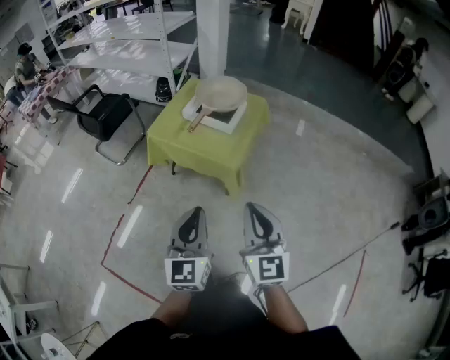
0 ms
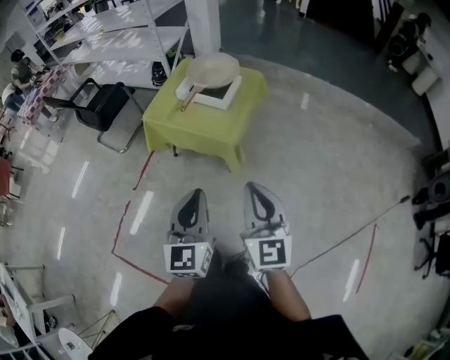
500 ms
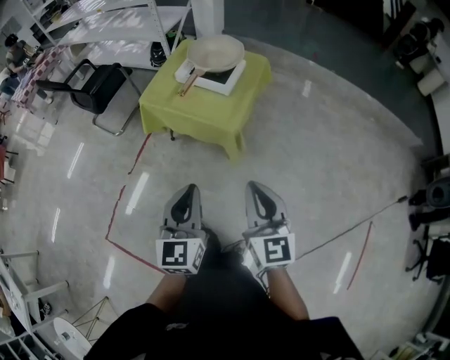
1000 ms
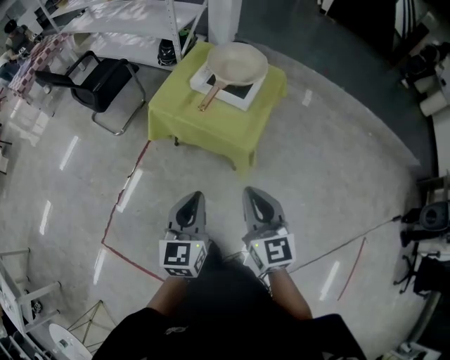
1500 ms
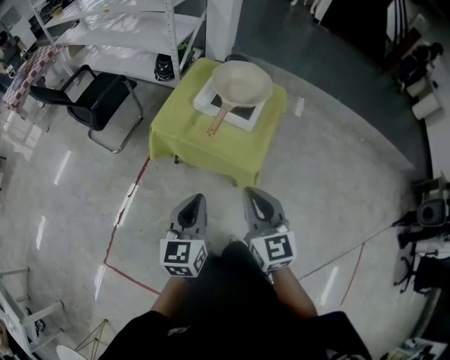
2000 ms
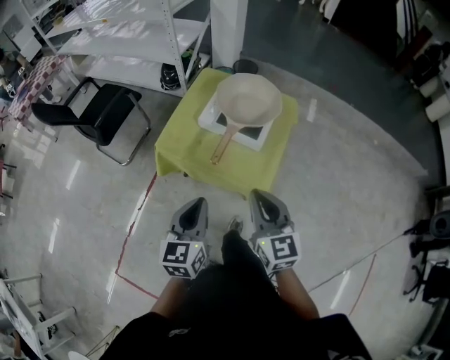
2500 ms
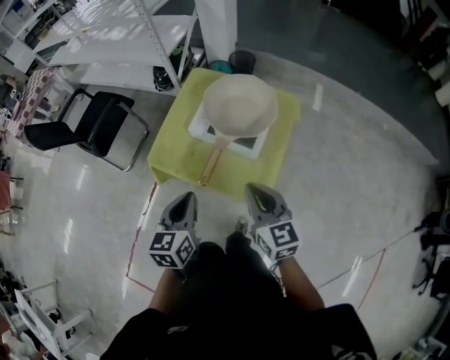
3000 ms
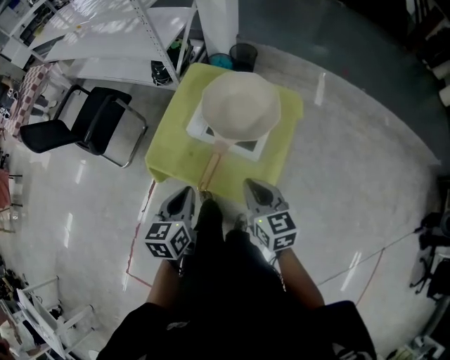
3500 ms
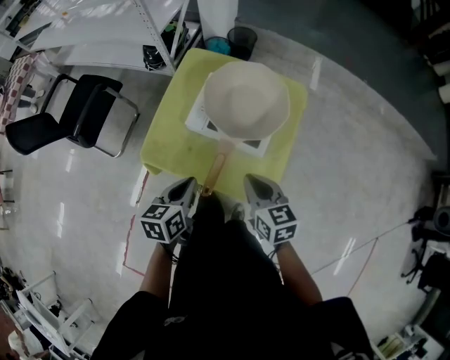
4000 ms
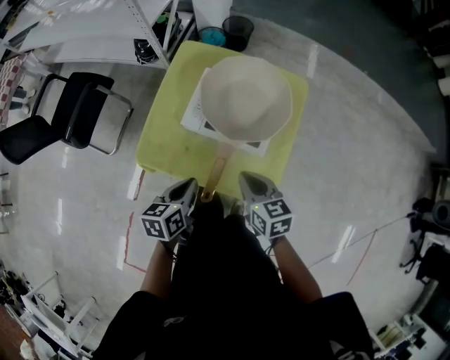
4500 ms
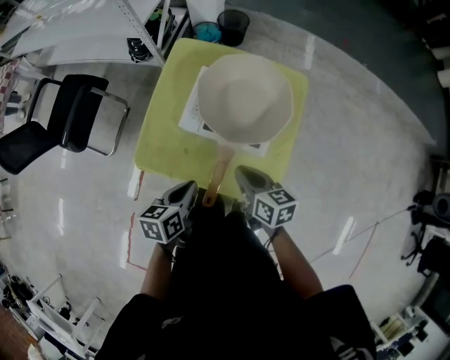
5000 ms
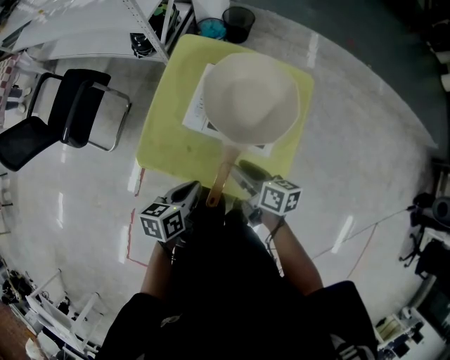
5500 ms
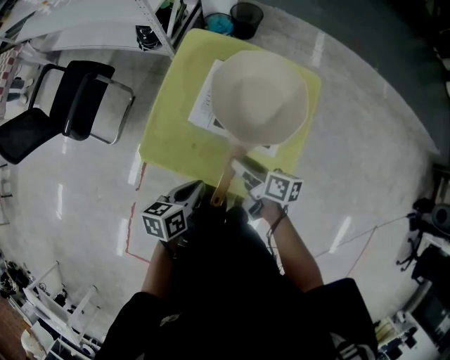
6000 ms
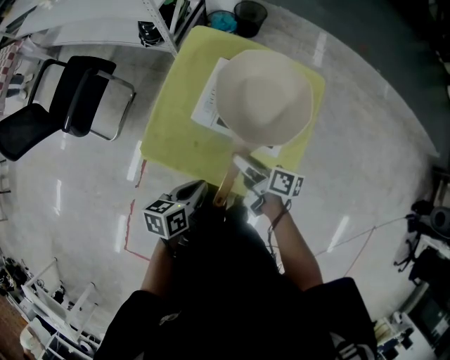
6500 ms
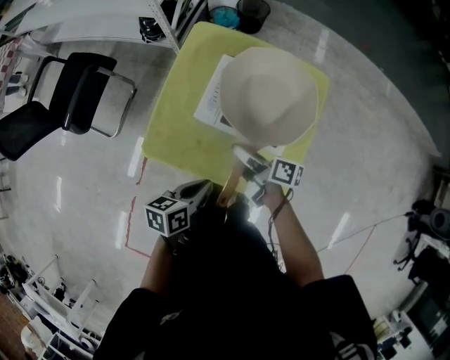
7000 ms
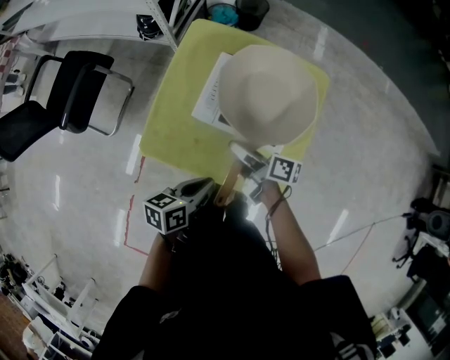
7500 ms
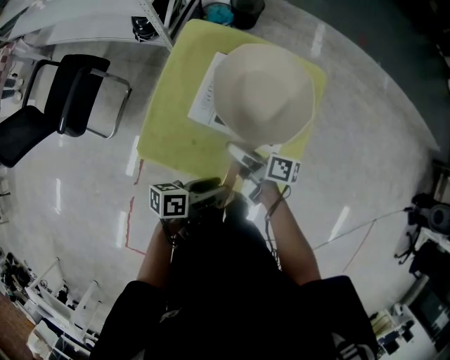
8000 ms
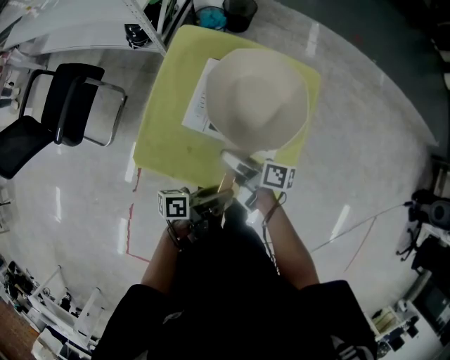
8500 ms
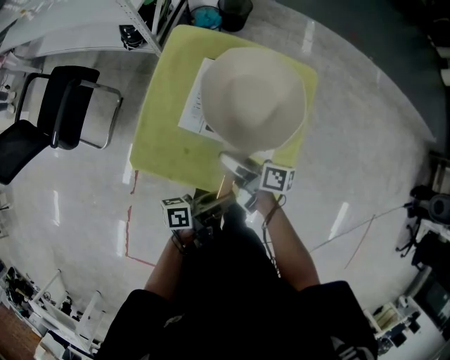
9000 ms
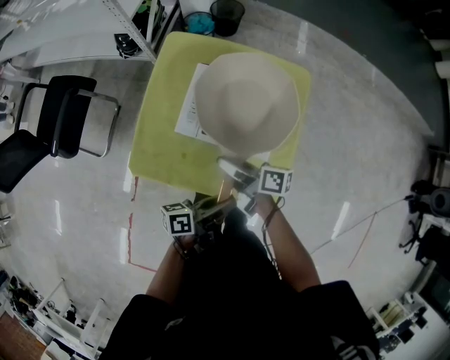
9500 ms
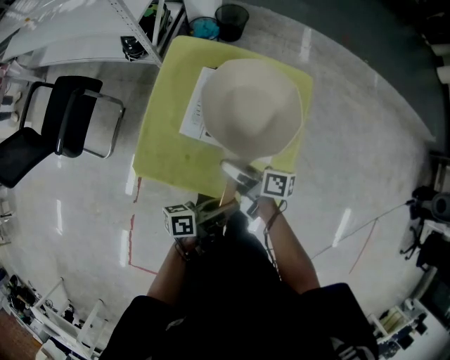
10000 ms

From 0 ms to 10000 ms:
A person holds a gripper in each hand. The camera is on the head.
From 0 ms to 2000 ms: The right gripper goes about 20 cm forward and to the left, while the left gripper is displaced forward, to the left and downward by roughly 20 cm.
From 2000 ms to 4000 ms: Both grippers travel together forward and downward, approximately 35 cm. The left gripper swivels about 30 degrees; the right gripper rotates roughly 30 degrees.
From 4000 ms to 6000 ms: The right gripper is displaced downward, forward and to the left by roughly 15 cm, twists about 40 degrees clockwise, seen from behind, and opens up. Meanwhile the left gripper shifts roughly 5 cm downward.
From 6000 ms to 8000 ms: The left gripper goes about 5 cm to the right, changes its angle by some 30 degrees, and opens its fingers.
From 8000 ms to 10000 ms: The left gripper closes.

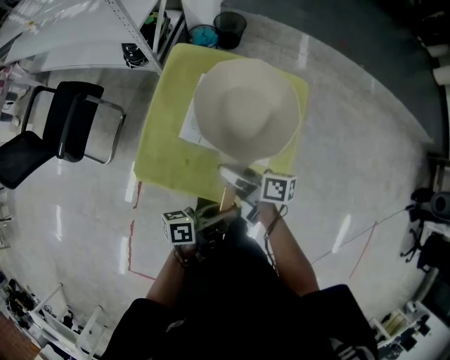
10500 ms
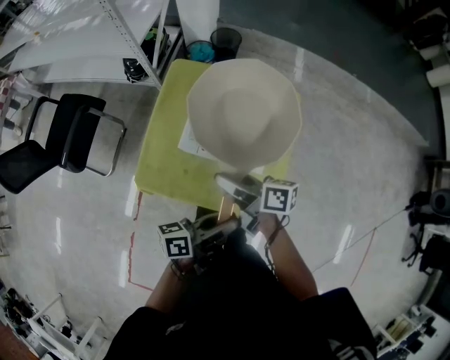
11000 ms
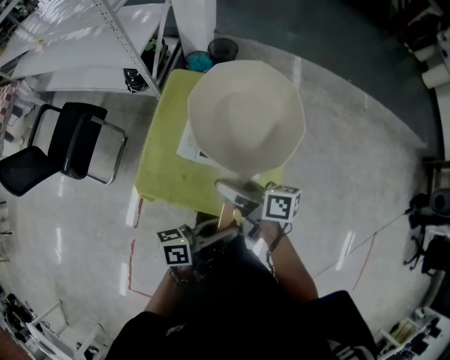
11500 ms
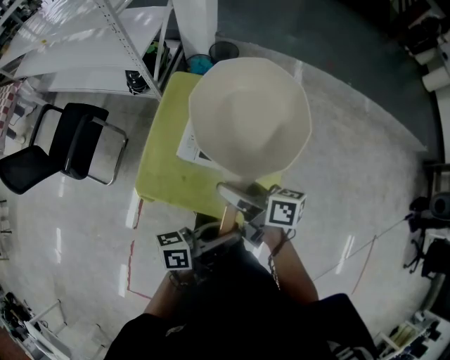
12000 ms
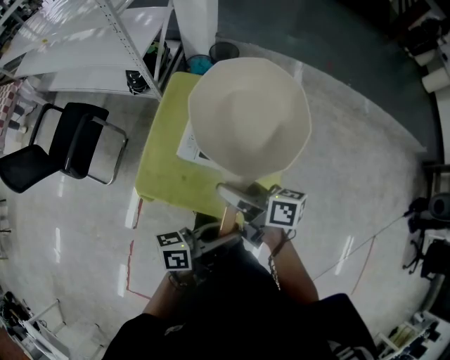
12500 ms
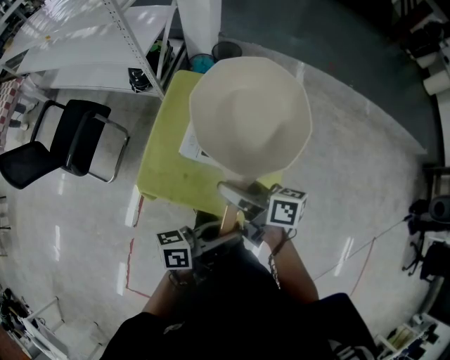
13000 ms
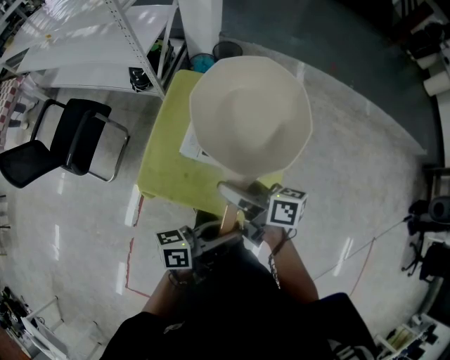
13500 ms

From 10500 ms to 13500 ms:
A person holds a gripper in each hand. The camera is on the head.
From 10500 ms to 12000 ms: The two grippers go roughly 10 cm upward.
From 12000 ms to 13500 ms: The grippers move only a little.

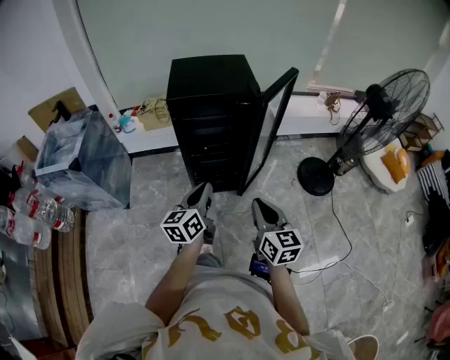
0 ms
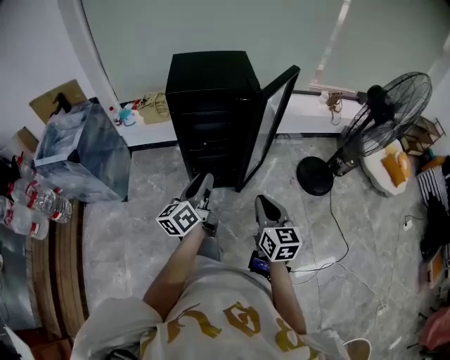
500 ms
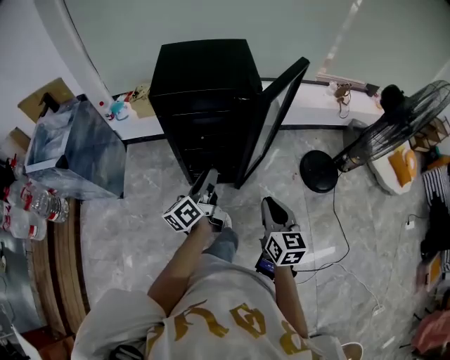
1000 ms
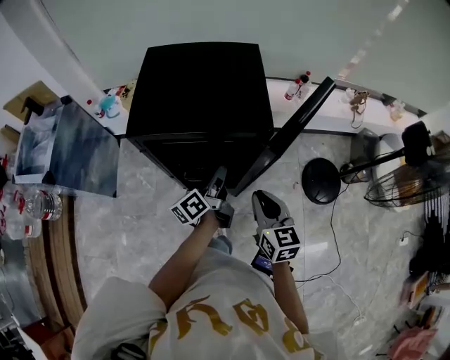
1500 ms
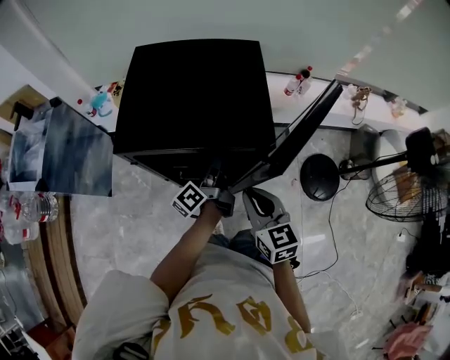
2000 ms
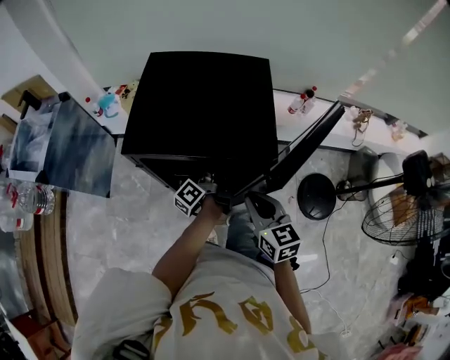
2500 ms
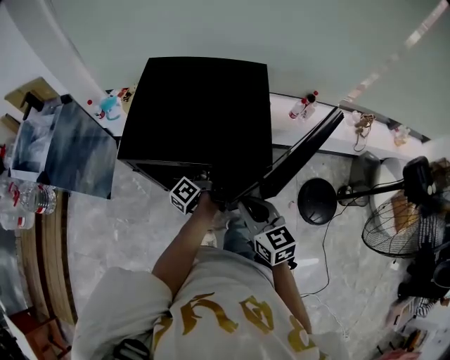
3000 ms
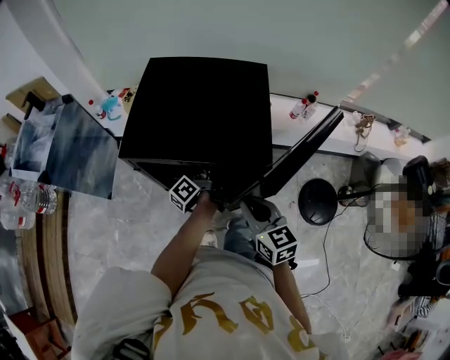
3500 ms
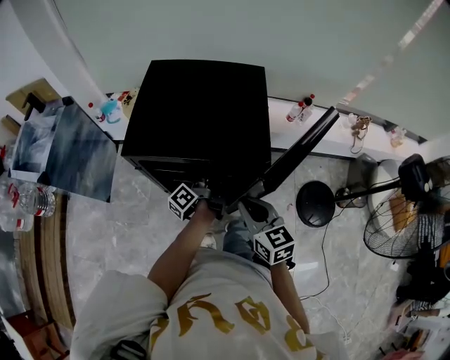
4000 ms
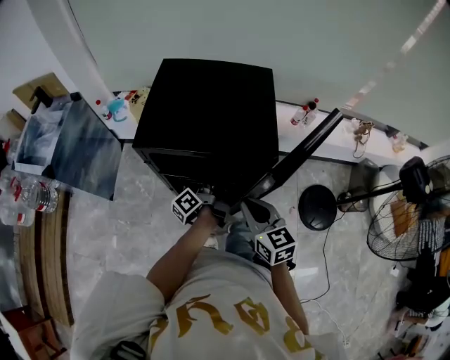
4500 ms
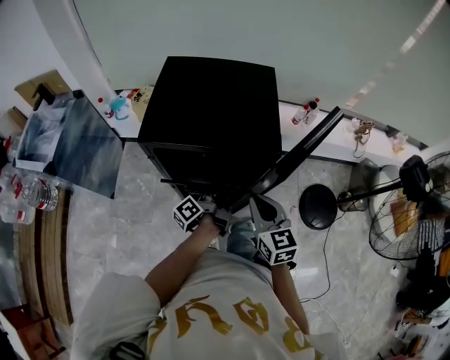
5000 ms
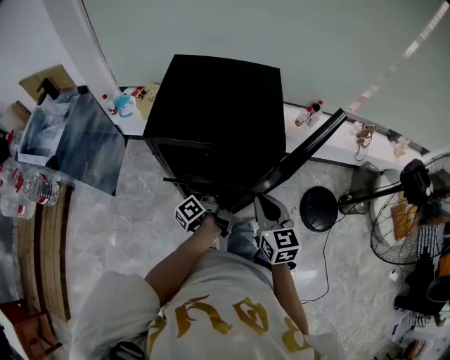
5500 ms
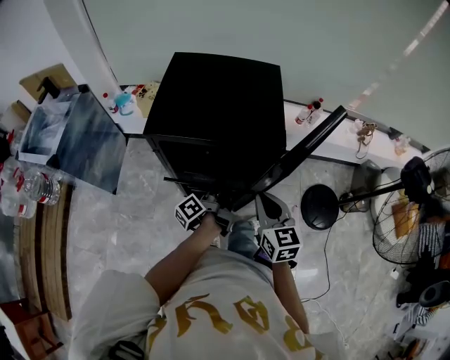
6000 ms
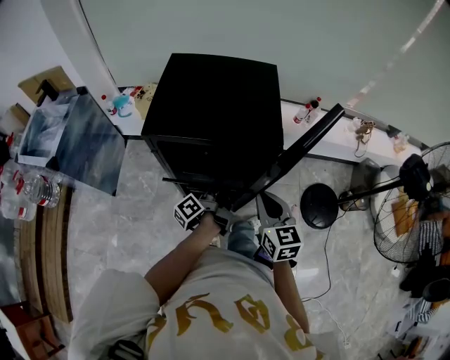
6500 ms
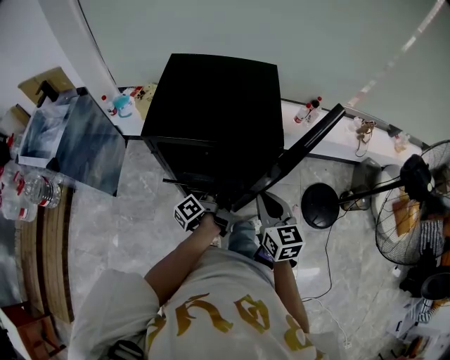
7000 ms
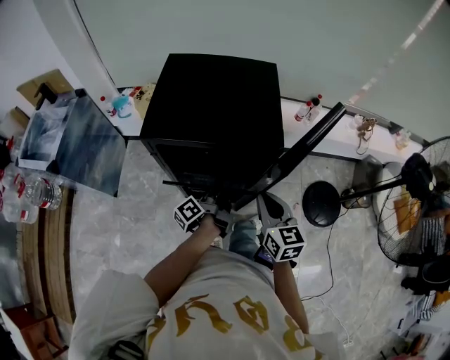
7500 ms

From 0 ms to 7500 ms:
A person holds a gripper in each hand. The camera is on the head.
From 0 ms to 2000 ms: The right gripper moves roughly 30 cm, and turns by about 20 degrees.

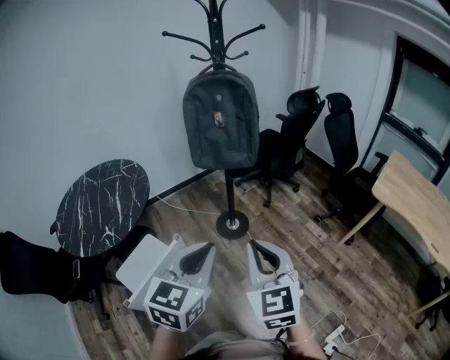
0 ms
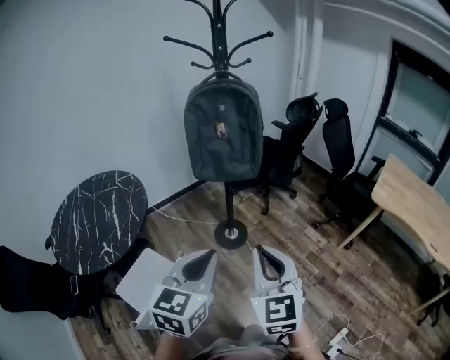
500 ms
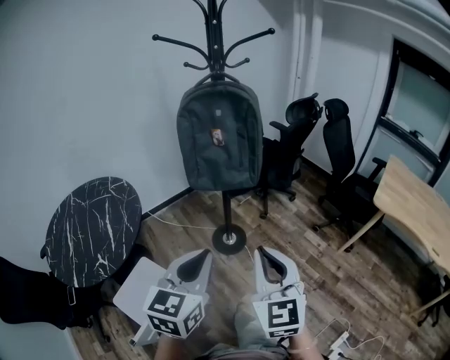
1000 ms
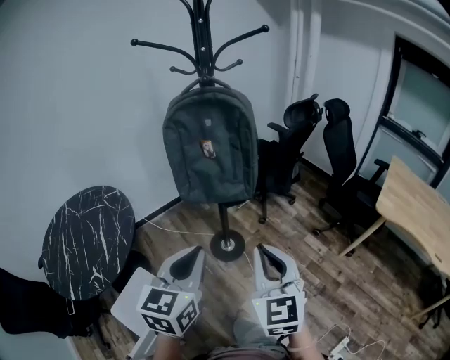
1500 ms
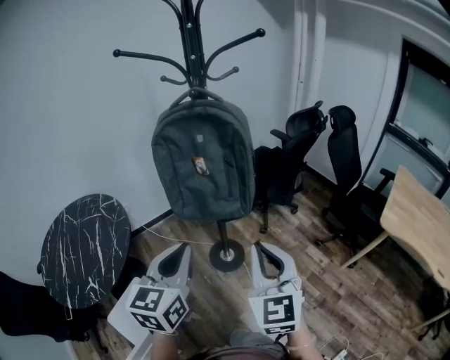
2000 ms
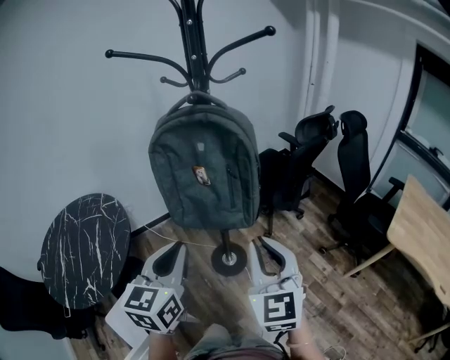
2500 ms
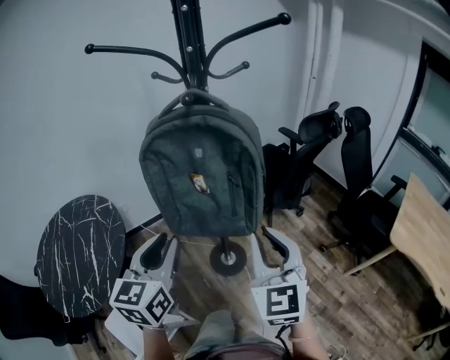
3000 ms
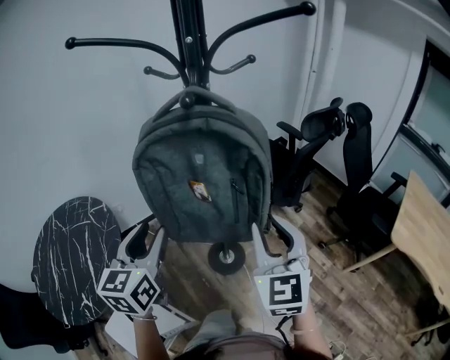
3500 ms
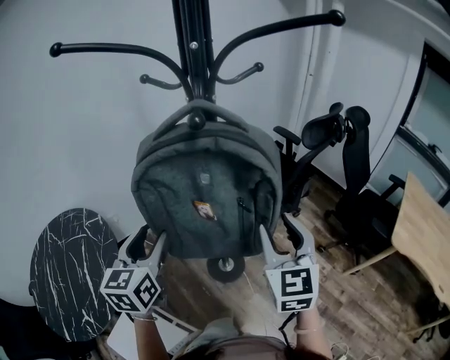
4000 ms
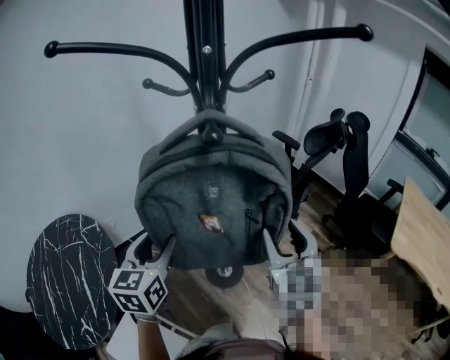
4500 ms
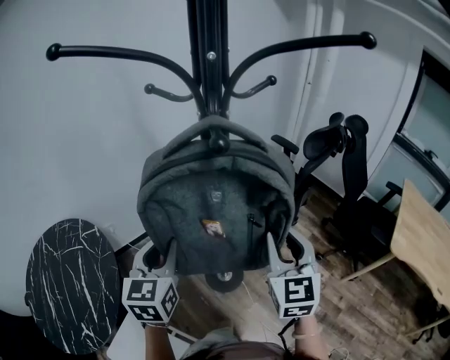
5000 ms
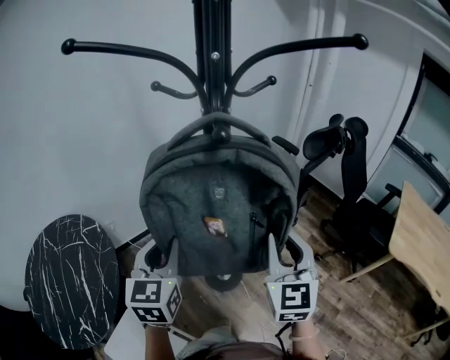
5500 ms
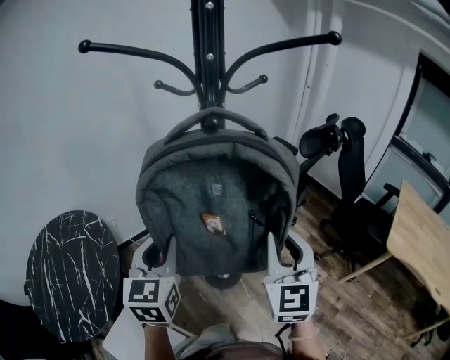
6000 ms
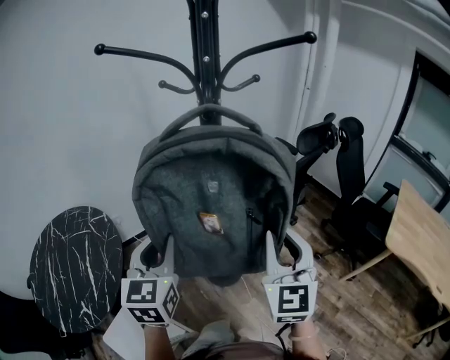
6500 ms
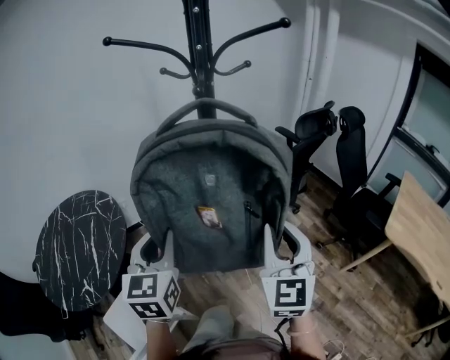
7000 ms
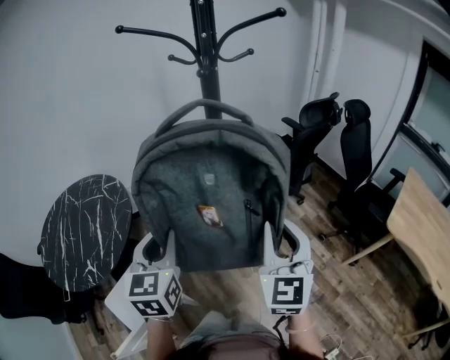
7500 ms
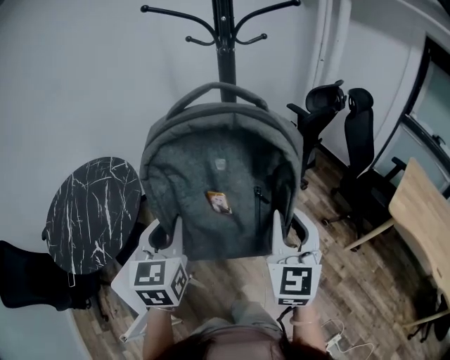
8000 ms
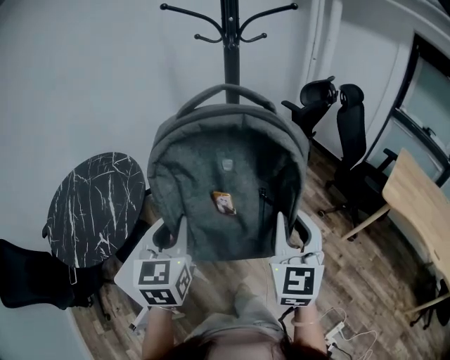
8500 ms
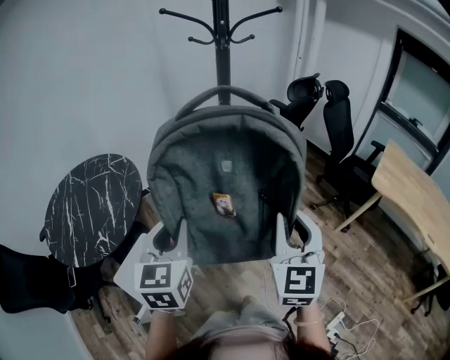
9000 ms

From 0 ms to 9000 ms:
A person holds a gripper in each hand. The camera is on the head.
From 0 ms to 2000 ms: Both grippers move forward, approximately 25 cm.
From 2000 ms to 4500 ms: Both grippers travel together forward, approximately 30 cm. The left gripper opens up; the right gripper opens.
From 4500 ms to 7000 ms: Both grippers travel together backward, roughly 20 cm. The right gripper closes, while the left gripper closes up.
From 7000 ms to 9000 ms: Both grippers move backward, about 25 cm.
